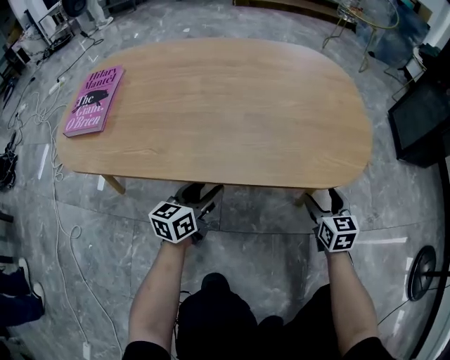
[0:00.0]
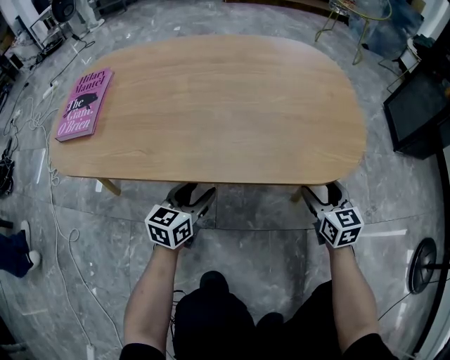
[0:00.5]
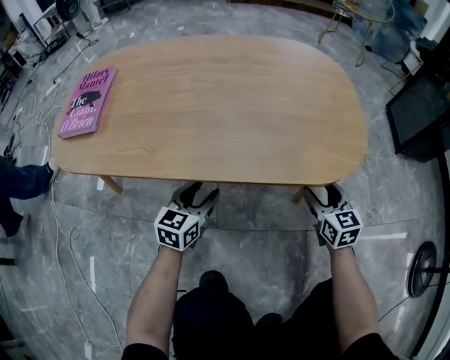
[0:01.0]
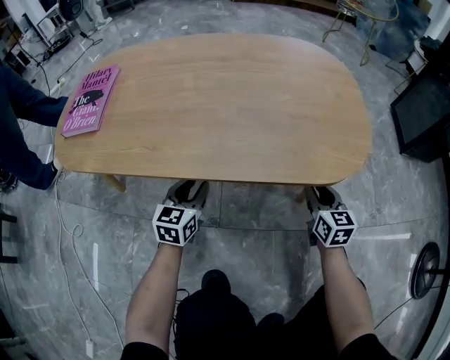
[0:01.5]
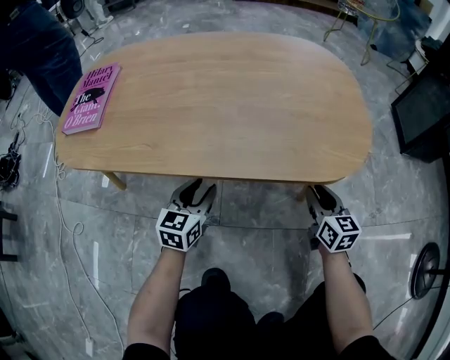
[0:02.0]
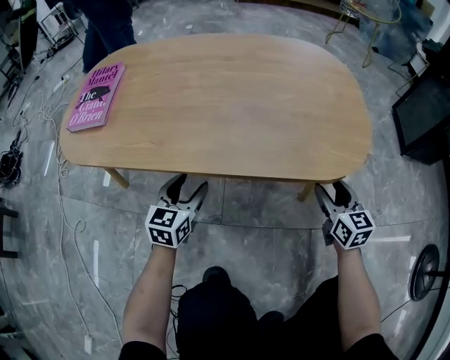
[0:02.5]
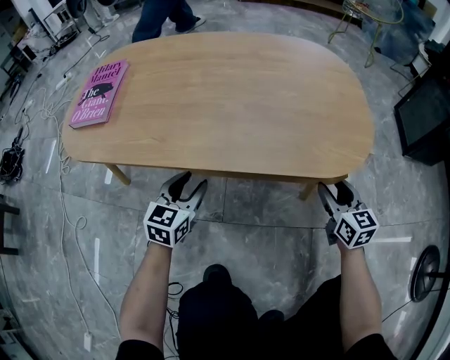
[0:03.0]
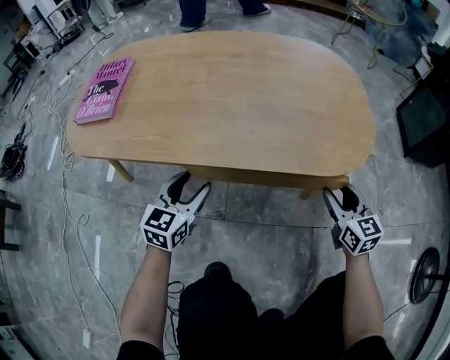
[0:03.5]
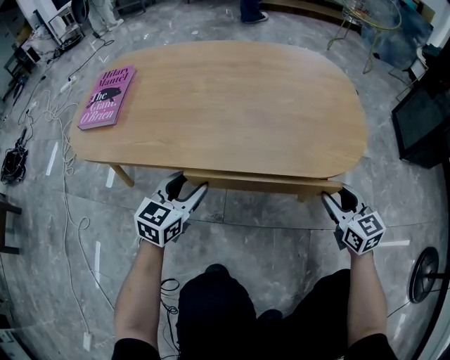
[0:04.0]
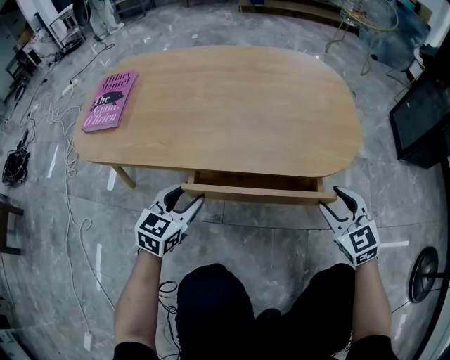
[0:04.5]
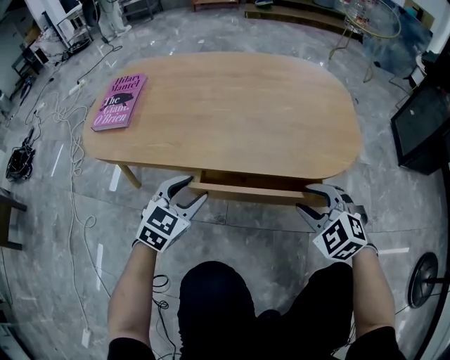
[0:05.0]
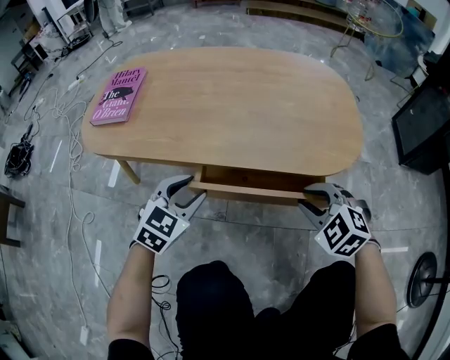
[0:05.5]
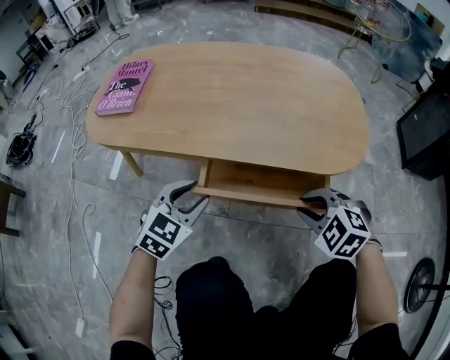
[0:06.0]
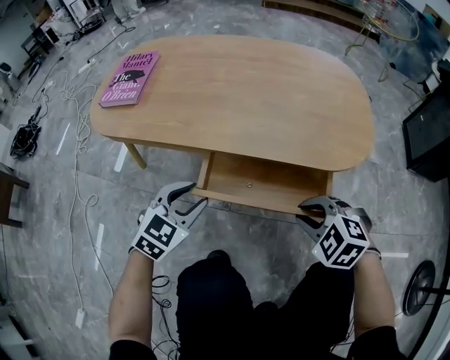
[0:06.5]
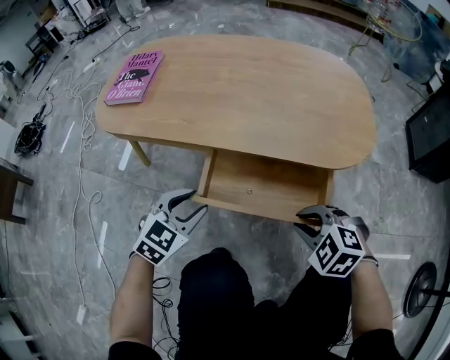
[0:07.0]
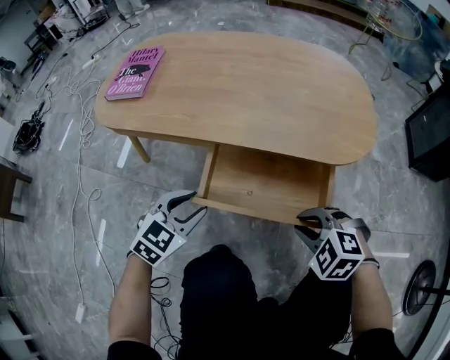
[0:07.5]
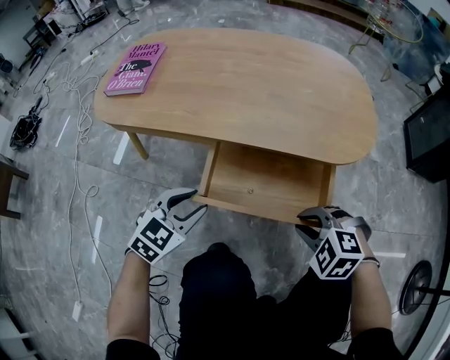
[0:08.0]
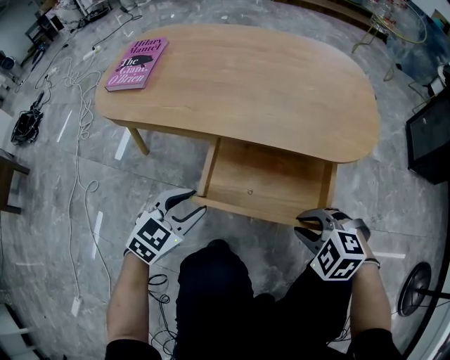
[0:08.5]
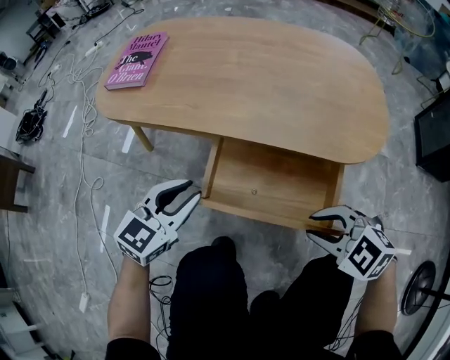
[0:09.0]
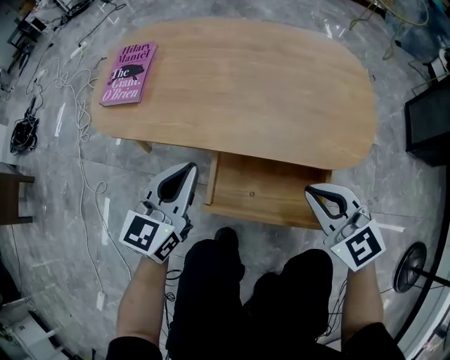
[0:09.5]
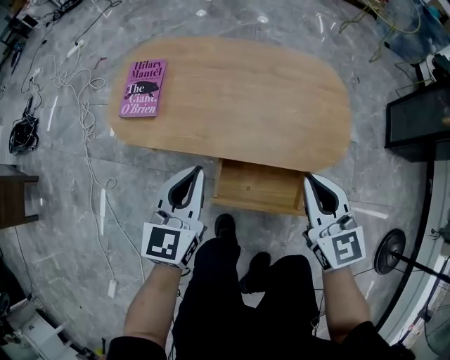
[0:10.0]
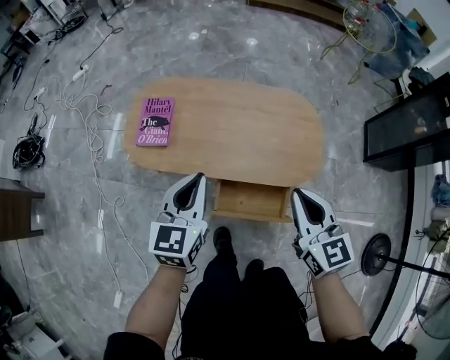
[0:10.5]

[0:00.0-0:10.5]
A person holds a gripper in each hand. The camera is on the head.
0:00.0 to 0:02.0: The right gripper closes up; the left gripper changes its angle by some 20 degrees.
0:02.0 to 0:04.0: The grippers both shift upward by about 10 cm.
0:04.0 to 0:06.5: The left gripper is displaced backward by about 10 cm, and swivels some 20 degrees; the right gripper moves to the left and backward, approximately 15 cm, and angles its fingers downward, by about 40 degrees.
0:06.5 to 0:08.5: The grippers both shift backward by some 5 cm.
0:08.5 to 0:10.5: The grippers both shift upward by approximately 50 cm. The left gripper swivels some 30 degrees, and closes, while the right gripper tilts its fingers some 40 degrees upward.

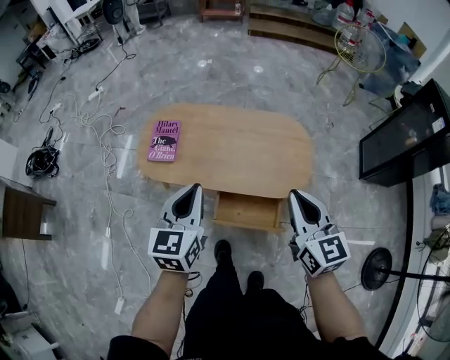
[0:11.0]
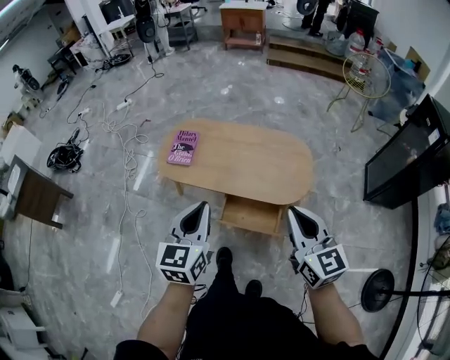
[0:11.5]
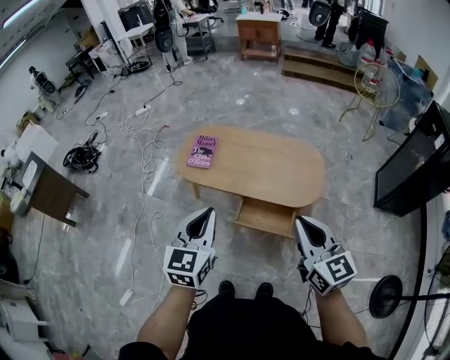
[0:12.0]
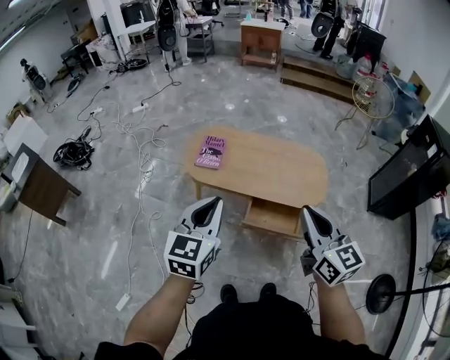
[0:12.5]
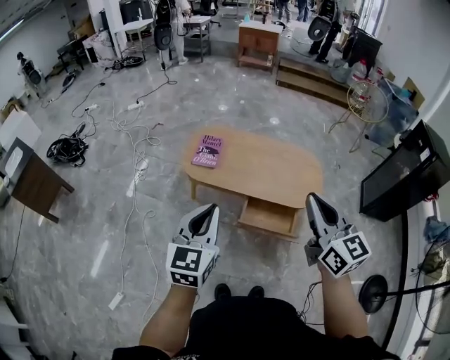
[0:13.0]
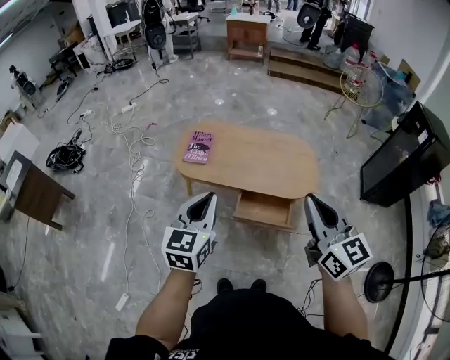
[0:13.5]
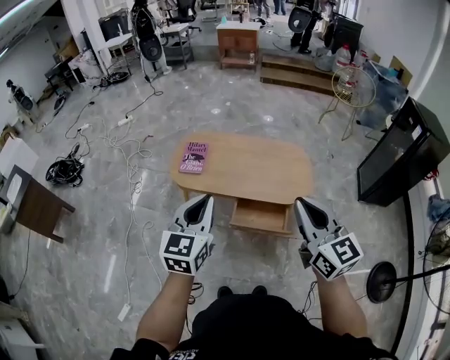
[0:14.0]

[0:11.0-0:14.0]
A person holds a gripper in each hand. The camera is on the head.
0:11.0 to 0:12.5: The left gripper shifts some 25 cm backward, upward and to the left; the right gripper goes some 25 cm backward, to the left and upward.
0:12.5 to 0:14.0: The two grippers go about 5 cm to the right.

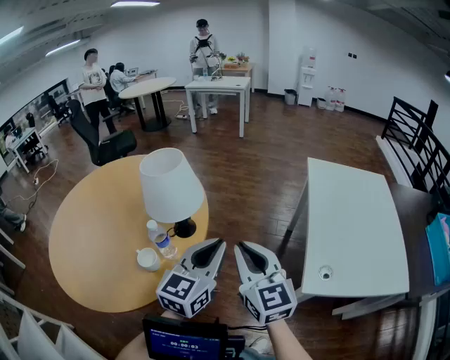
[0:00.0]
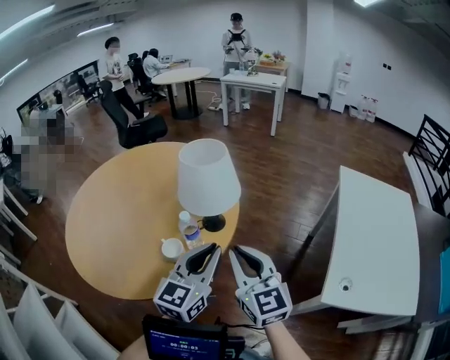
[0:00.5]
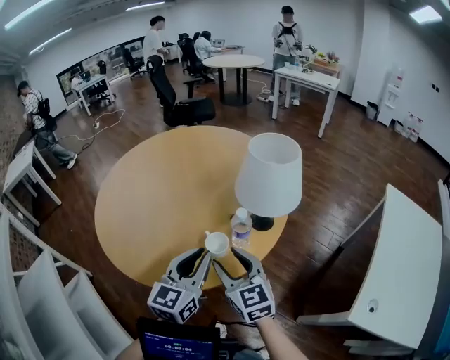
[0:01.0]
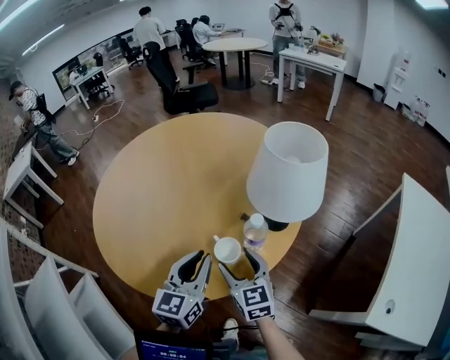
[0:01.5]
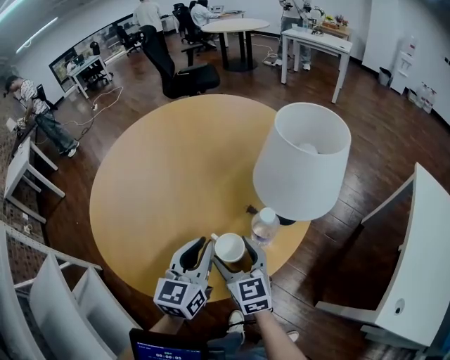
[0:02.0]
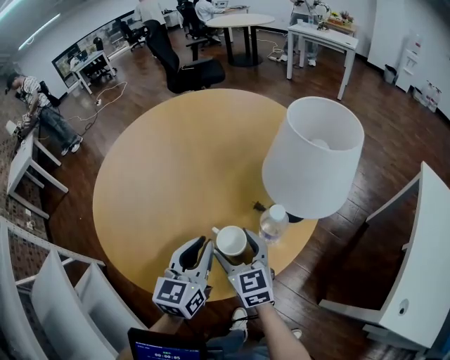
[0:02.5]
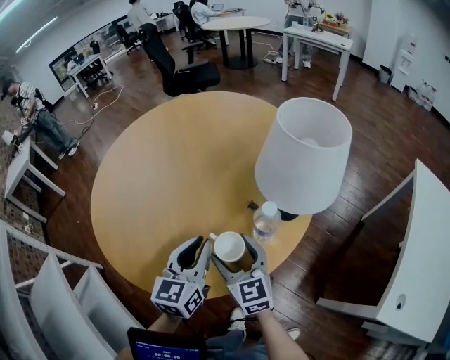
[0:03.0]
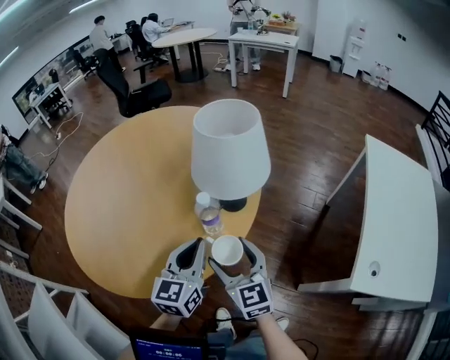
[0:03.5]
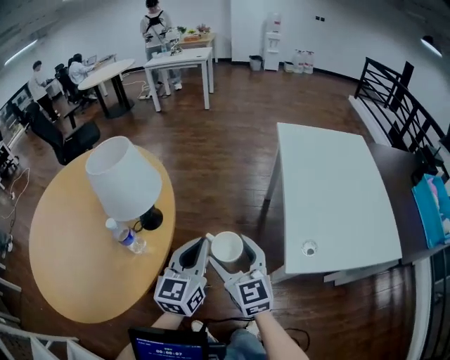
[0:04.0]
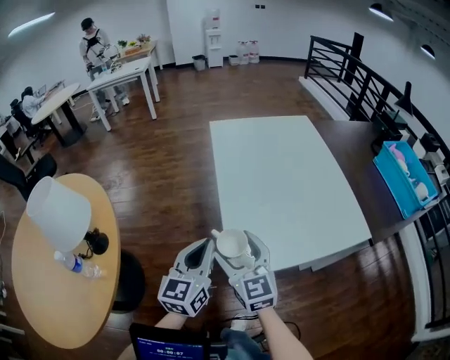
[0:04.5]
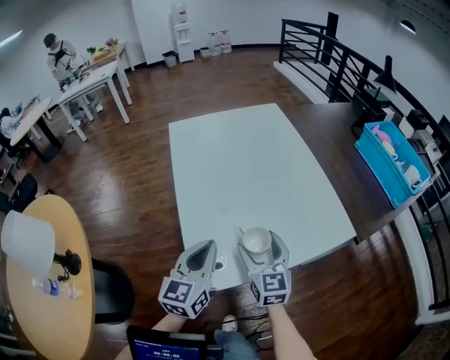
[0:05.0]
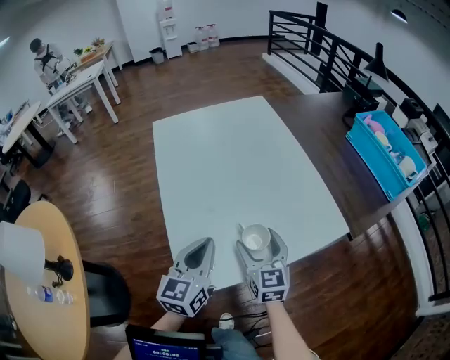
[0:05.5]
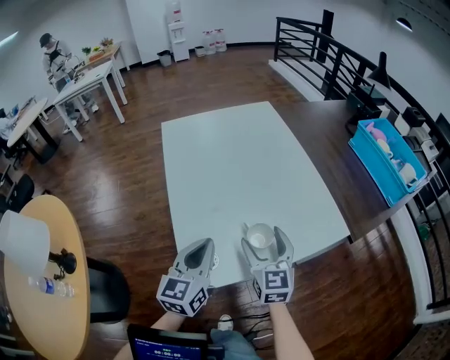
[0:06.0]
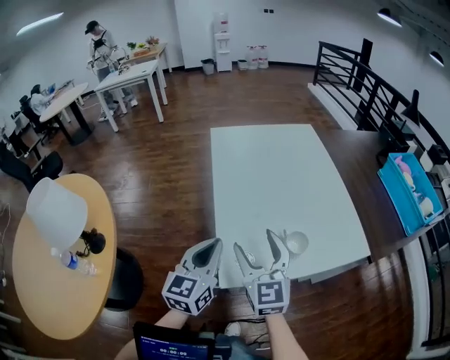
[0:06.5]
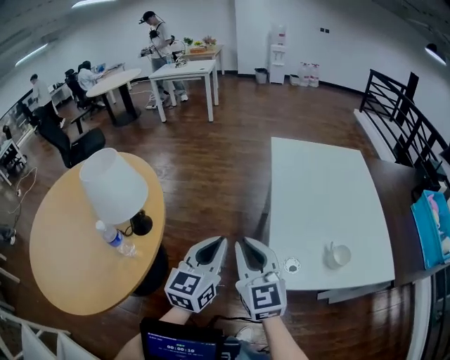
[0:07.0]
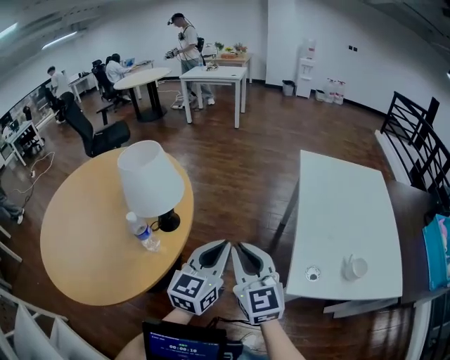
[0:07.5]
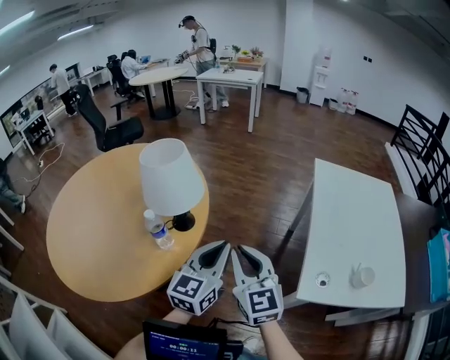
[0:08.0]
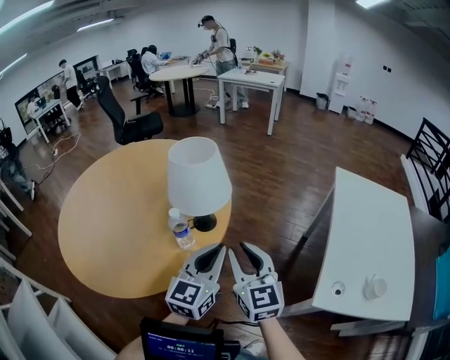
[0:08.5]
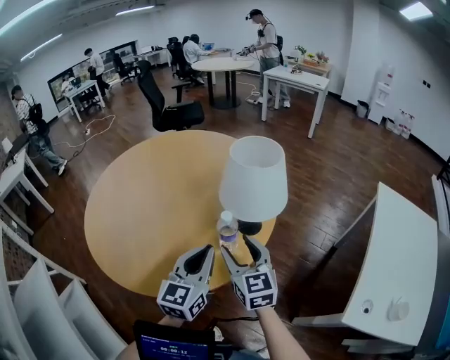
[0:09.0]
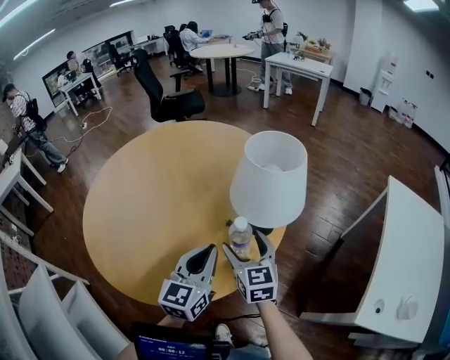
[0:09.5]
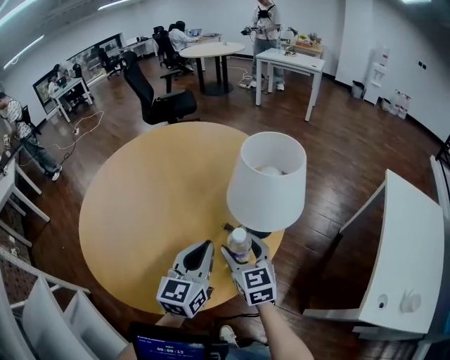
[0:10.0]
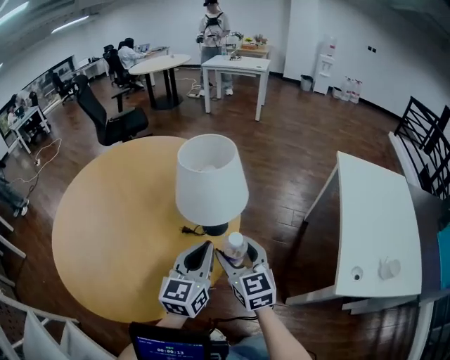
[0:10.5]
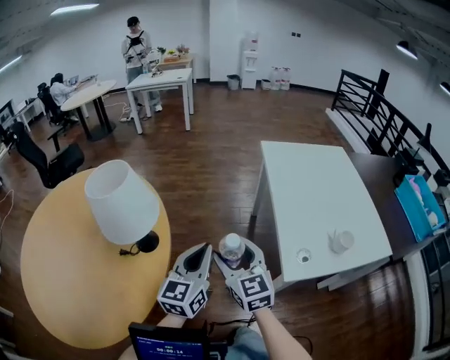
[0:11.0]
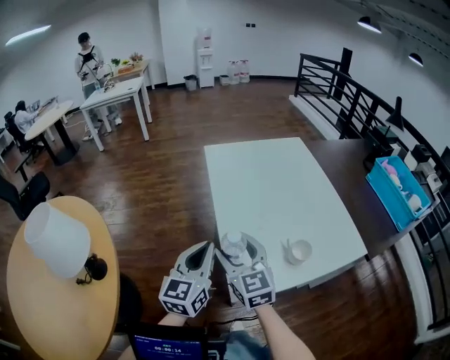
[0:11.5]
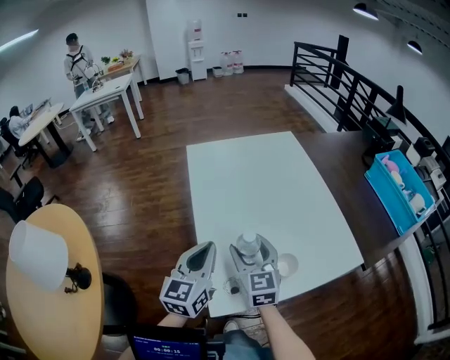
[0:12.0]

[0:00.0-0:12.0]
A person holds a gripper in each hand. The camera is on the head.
0:00.0 to 0:02.0: The right gripper shifts by roughly 40 cm, turns by about 30 degrees, and opens its fingers. The left gripper moves some 35 cm, and rotates roughly 40 degrees.
0:02.0 to 0:04.0: The right gripper shifts by roughly 40 cm, and turns by approximately 30 degrees; the left gripper moves approximately 35 cm, and swivels roughly 30 degrees.
0:04.0 to 0:06.0: Both grippers are carried about 50 cm. The right gripper turns by some 40 degrees; the left gripper rotates some 30 degrees.
0:06.0 to 0:08.0: The pair of grippers is taken approximately 50 cm. The right gripper rotates about 50 degrees, and closes. Meanwhile the left gripper turns by some 30 degrees.
0:08.0 to 0:10.0: The left gripper is displaced to the left by some 30 cm, and rotates about 20 degrees. The right gripper shifts about 30 cm to the left, forward and downward, and opens its fingers.
0:10.0 to 0:12.0: Both grippers are carried roughly 70 cm. The left gripper changes its angle by some 50 degrees; the right gripper rotates approximately 50 degrees.

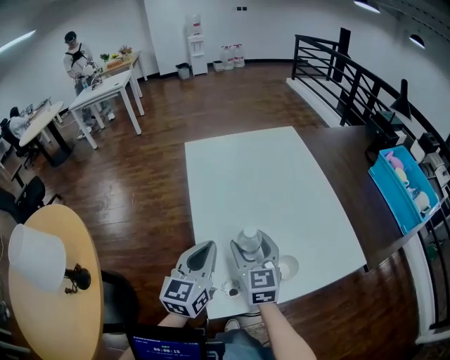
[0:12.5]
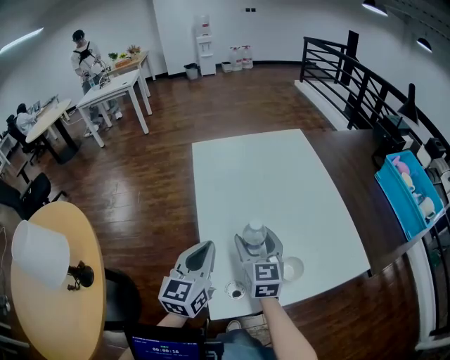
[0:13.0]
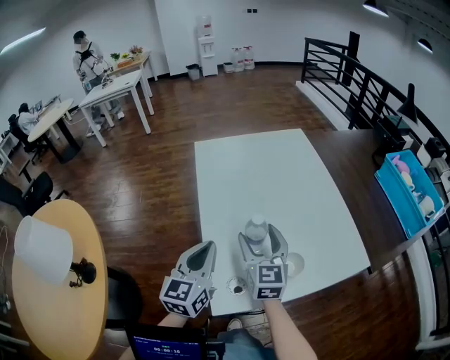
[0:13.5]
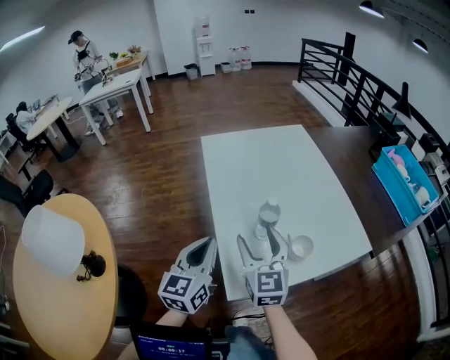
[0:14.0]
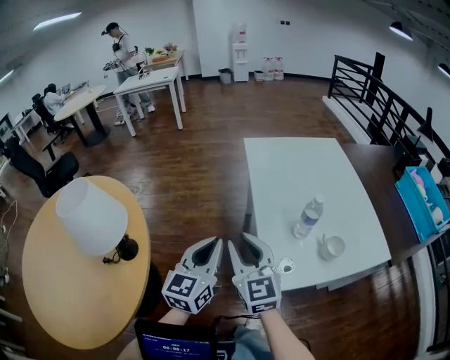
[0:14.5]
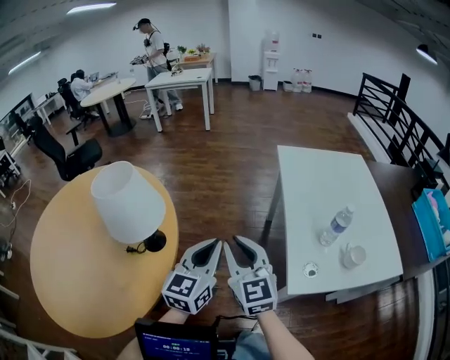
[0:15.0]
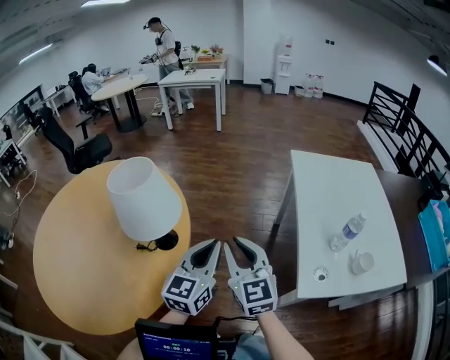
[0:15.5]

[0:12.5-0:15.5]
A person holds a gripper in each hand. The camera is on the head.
0:12.5 to 0:14.0: The right gripper moves backward and upward, approximately 10 cm, while the left gripper heads to the left and backward, covering approximately 10 cm.
0:14.0 to 0:15.5: Both grippers move to the left, some 35 cm. The right gripper changes its angle by about 30 degrees, and closes its fingers.
